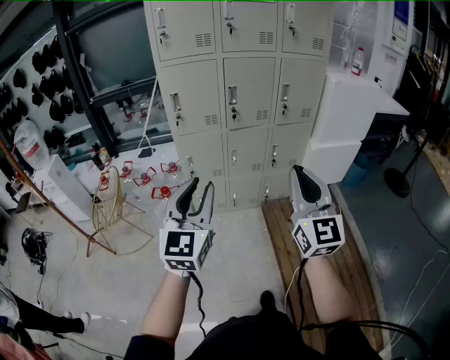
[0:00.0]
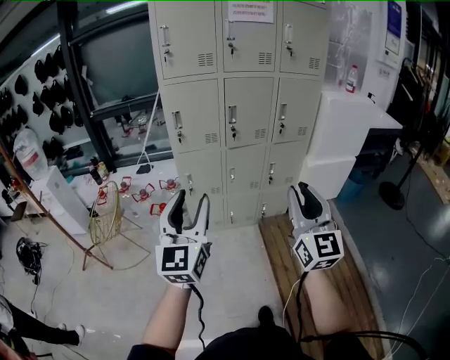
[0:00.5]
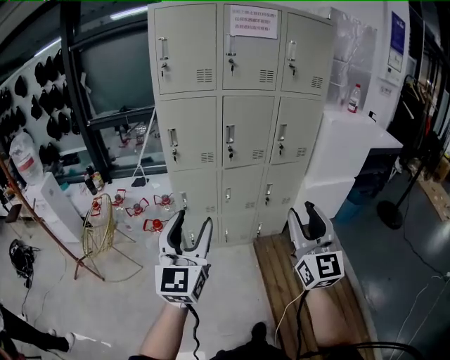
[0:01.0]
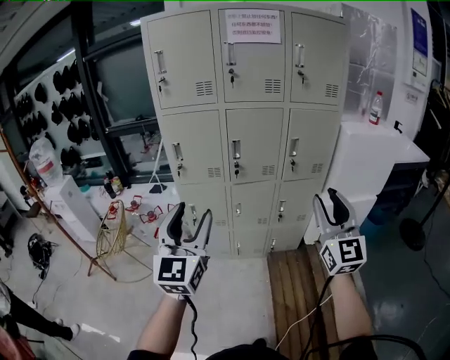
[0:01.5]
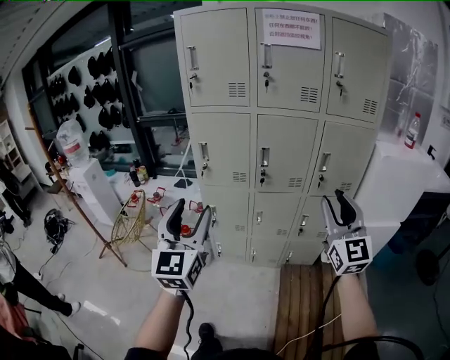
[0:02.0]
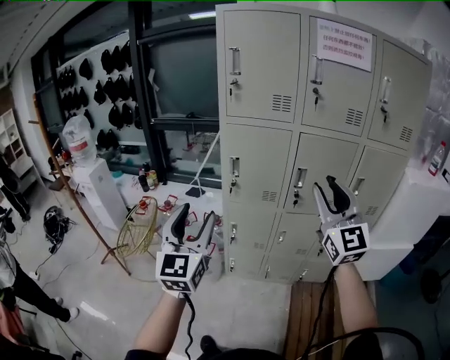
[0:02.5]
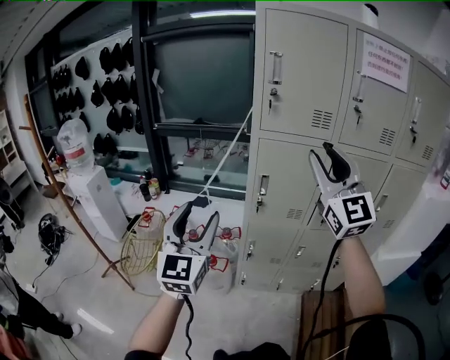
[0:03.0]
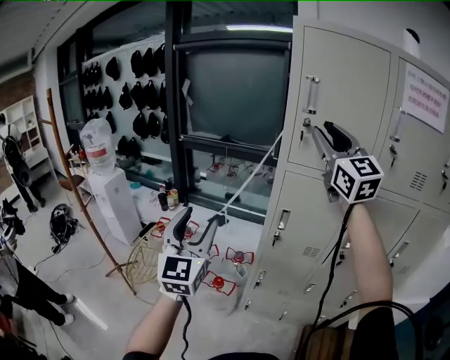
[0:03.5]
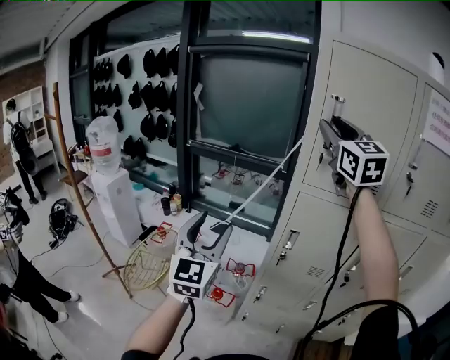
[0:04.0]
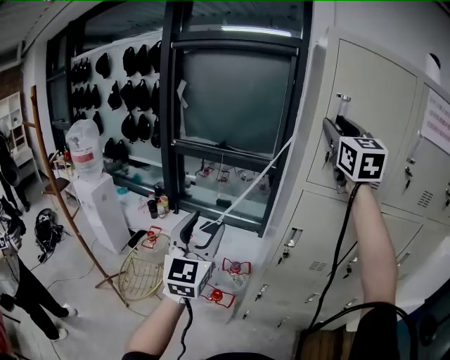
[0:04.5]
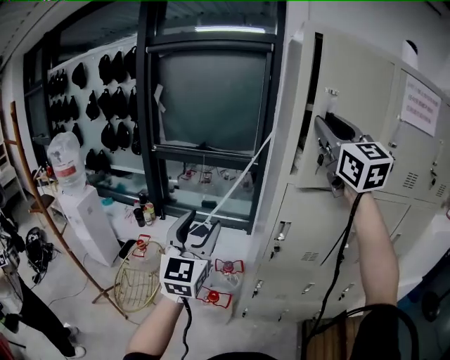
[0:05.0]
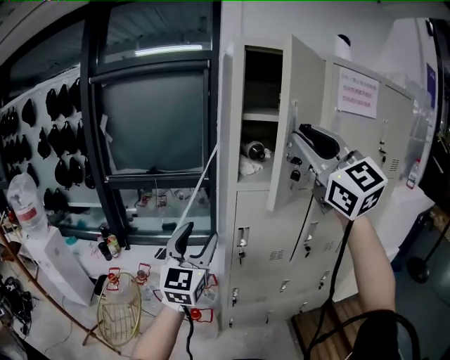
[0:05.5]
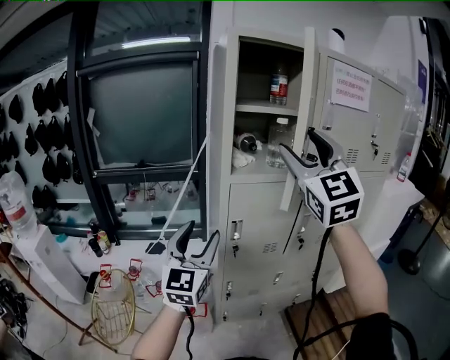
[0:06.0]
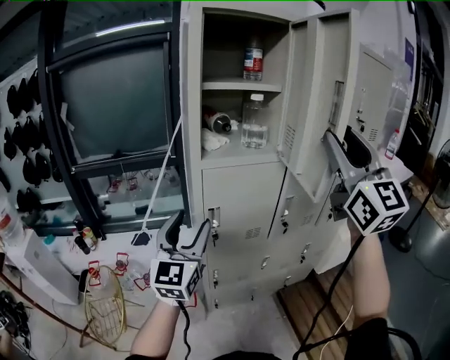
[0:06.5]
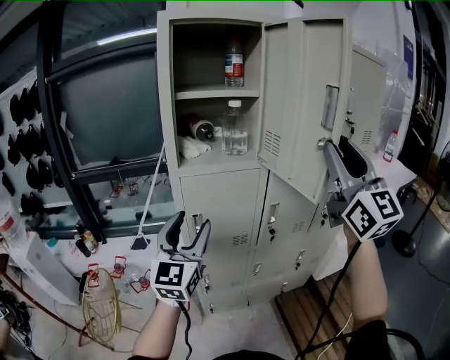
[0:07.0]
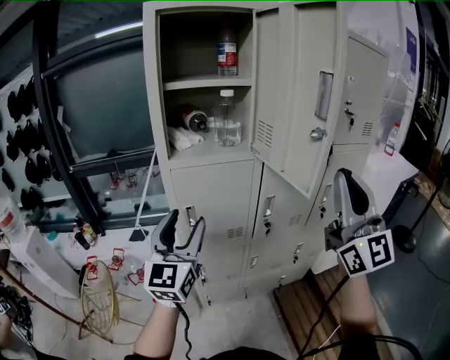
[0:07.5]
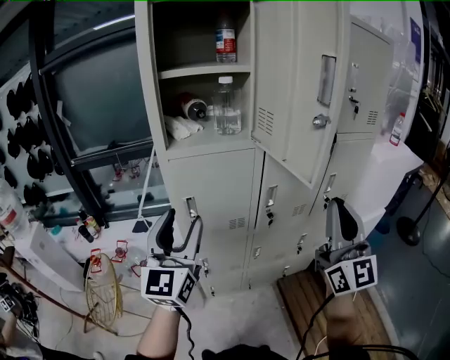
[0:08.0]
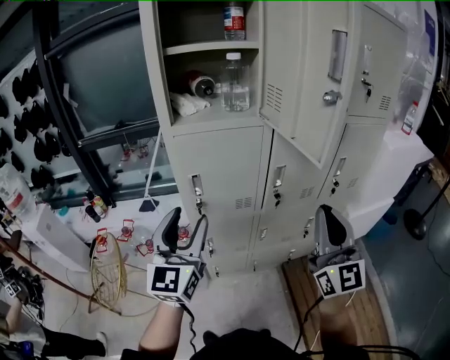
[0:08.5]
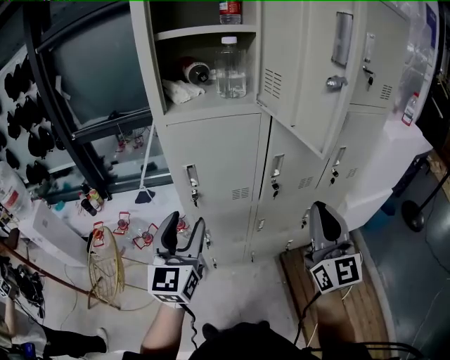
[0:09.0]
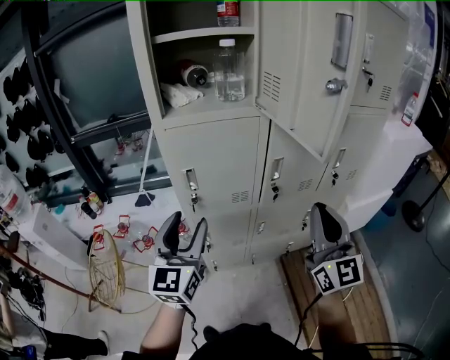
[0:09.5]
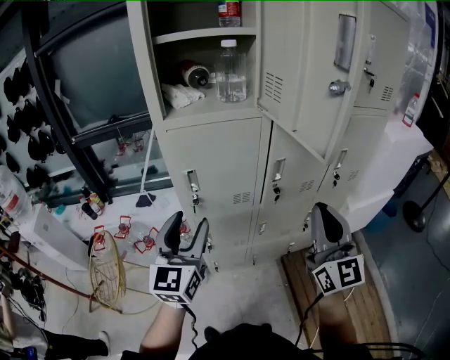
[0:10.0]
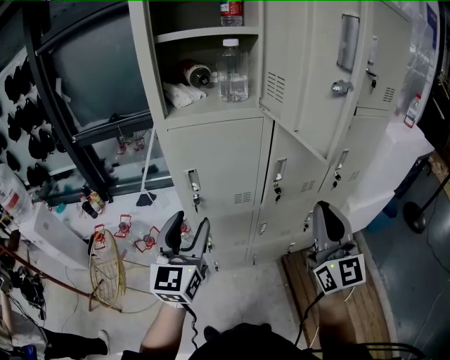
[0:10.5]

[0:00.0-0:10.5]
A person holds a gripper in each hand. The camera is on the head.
0:00.0 to 0:02.0: The left gripper goes roughly 15 cm forward and upward, rotates approximately 20 degrees, and opens, while the right gripper goes roughly 30 cm forward and to the right, and opens its fingers.
0:02.0 to 0:04.0: The two grippers travel together, forward and to the left, some 60 cm. The right gripper is displaced upward by about 25 cm.
0:04.0 to 0:06.5: The left gripper ends up approximately 15 cm from where it was, and swivels some 30 degrees. Meanwhile the right gripper shifts by some 30 cm, changes its angle by roughly 30 degrees, and opens and closes again.
0:06.5 to 0:08.5: The left gripper shifts approximately 10 cm to the right. The right gripper shifts roughly 25 cm downward and to the right, and closes up.
0:08.5 to 0:10.5: The left gripper changes place by some 5 cm.

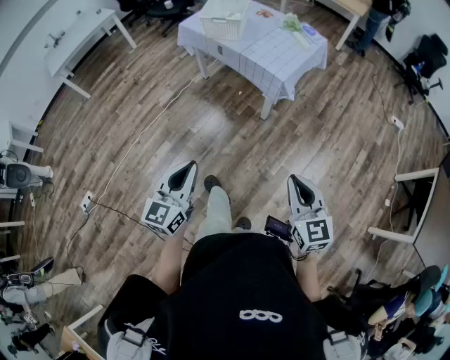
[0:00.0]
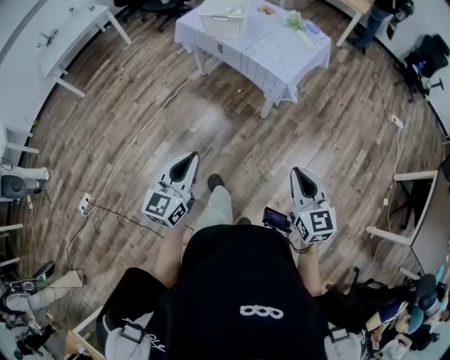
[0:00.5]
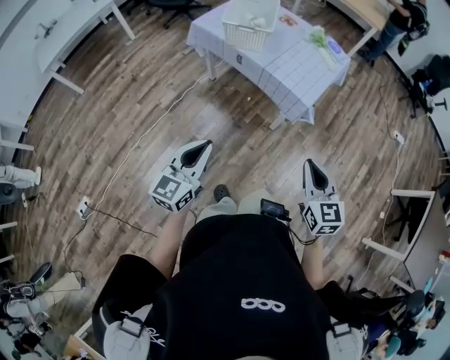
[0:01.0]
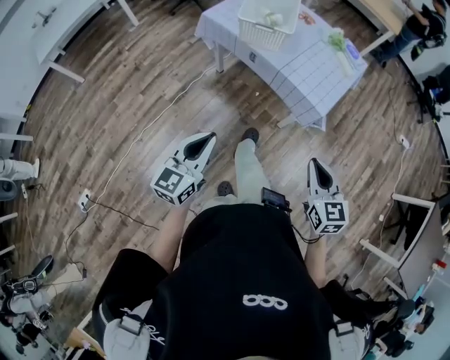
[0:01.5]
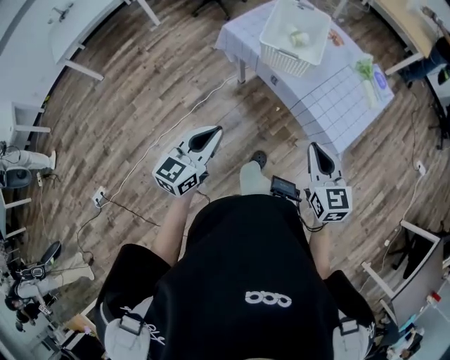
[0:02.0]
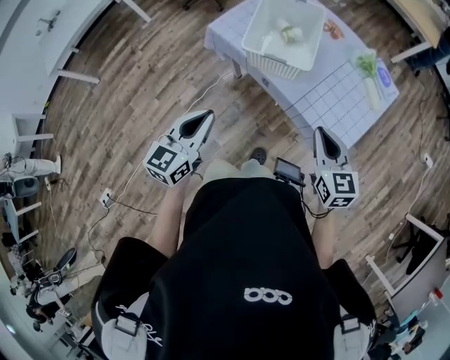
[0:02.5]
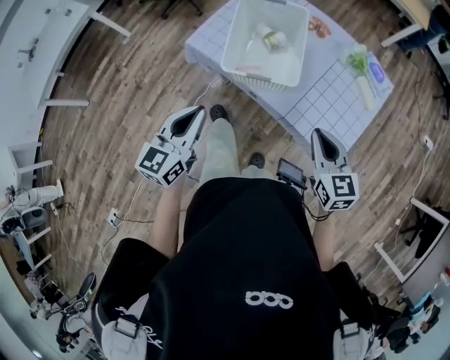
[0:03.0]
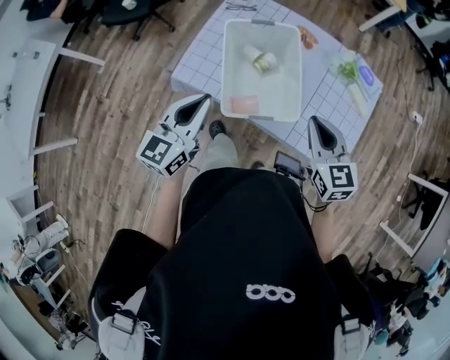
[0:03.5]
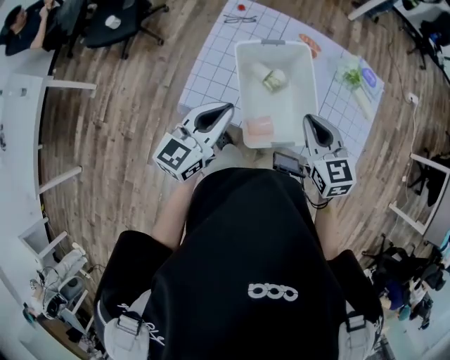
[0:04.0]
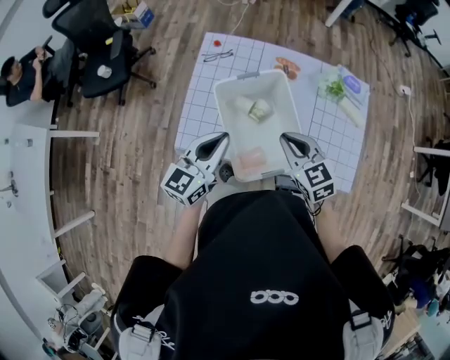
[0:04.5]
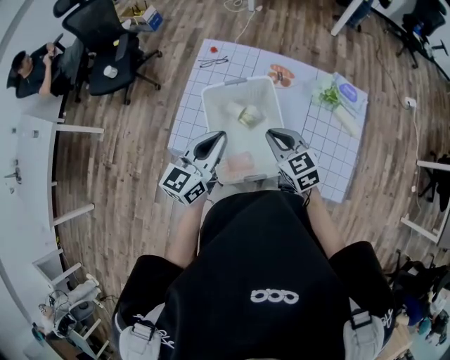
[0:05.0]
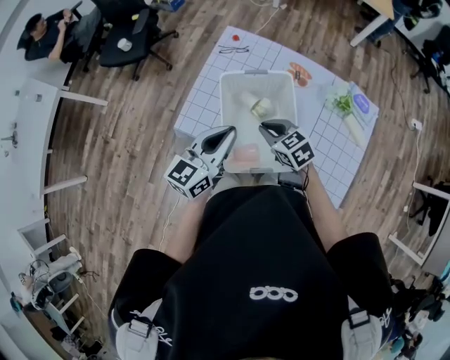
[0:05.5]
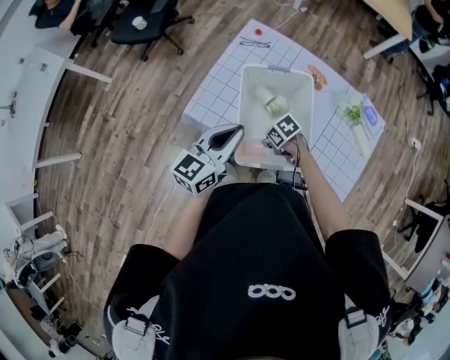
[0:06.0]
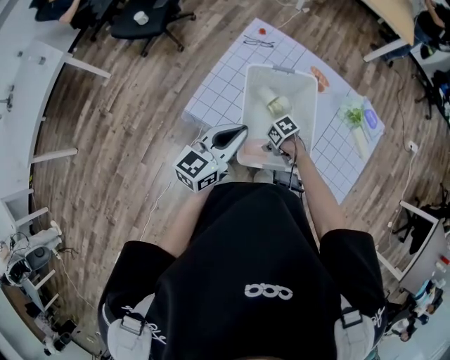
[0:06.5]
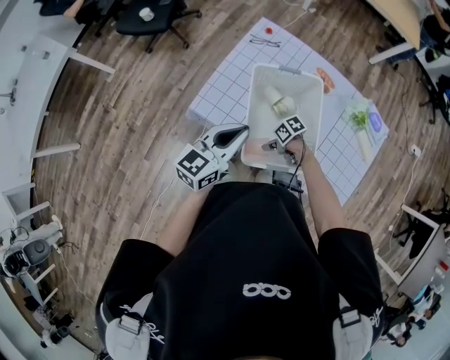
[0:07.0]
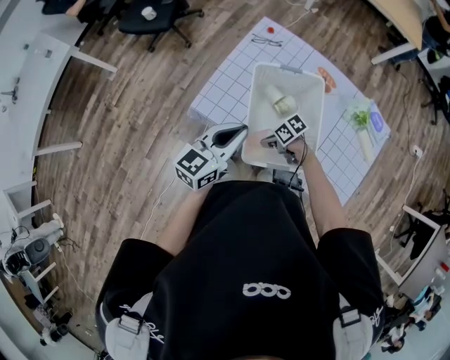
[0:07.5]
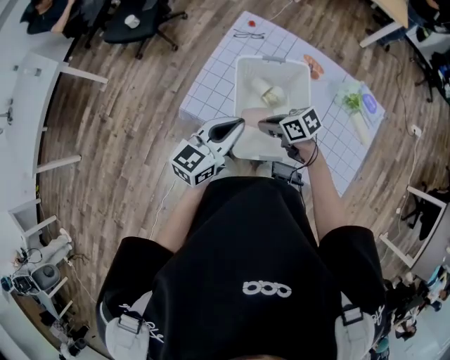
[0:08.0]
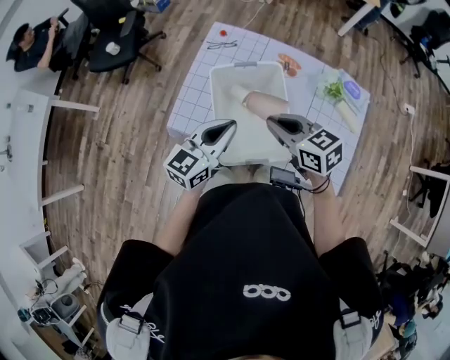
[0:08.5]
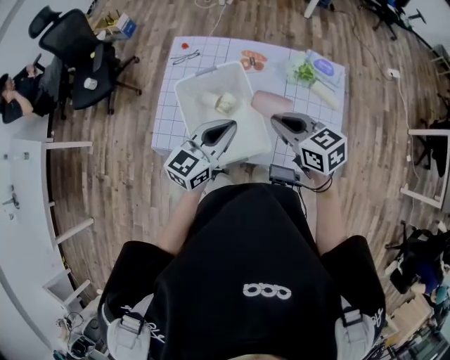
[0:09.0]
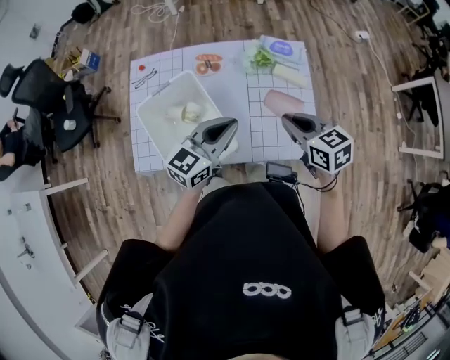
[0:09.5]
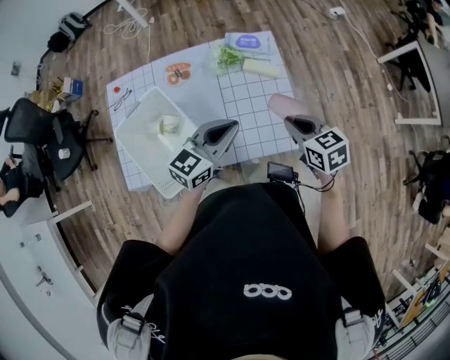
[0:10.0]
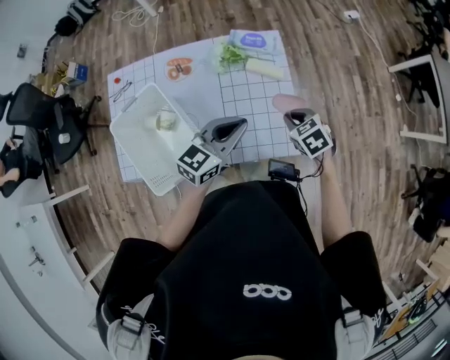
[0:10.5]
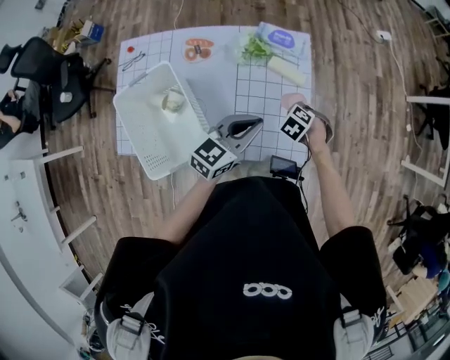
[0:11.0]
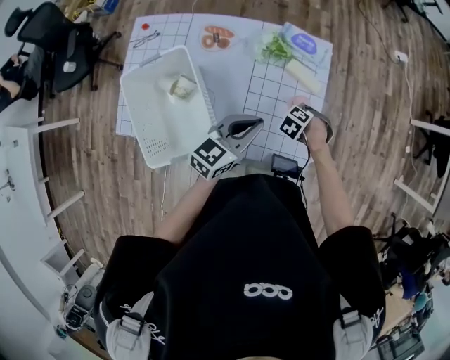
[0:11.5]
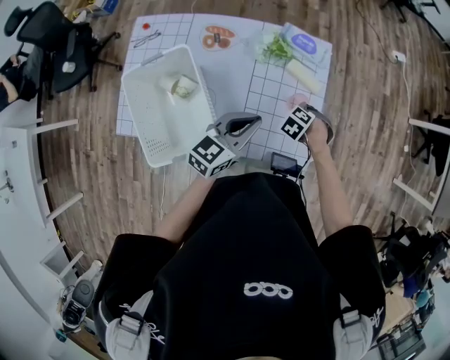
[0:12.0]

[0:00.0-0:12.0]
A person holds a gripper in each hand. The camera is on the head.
0:00.0 to 0:02.0: Both grippers are carried forward and to the left, some 50 cm.
0:02.0 to 0:04.0: Both grippers are carried roughly 50 cm. The right gripper changes its angle by some 20 degrees; the left gripper changes its angle by roughly 30 degrees.
0:04.0 to 0:06.0: The right gripper is displaced downward by approximately 25 cm, and rotates about 70 degrees.
0:06.0 to 0:08.0: The right gripper is displaced upward by approximately 10 cm, and changes its angle by roughly 30 degrees.
0:08.0 to 0:10.0: The right gripper shifts by approximately 40 cm, and swivels approximately 60 degrees, while the left gripper shifts by roughly 35 cm, and rotates about 40 degrees.
0:10.0 to 0:12.0: The right gripper is displaced downward by roughly 25 cm, and tilts its fingers some 50 degrees downward. The left gripper travels downward by roughly 5 cm.

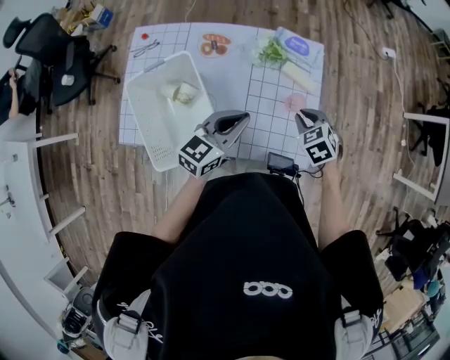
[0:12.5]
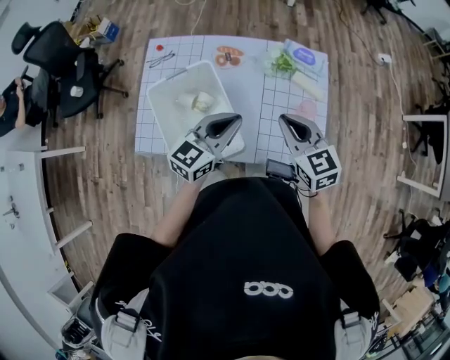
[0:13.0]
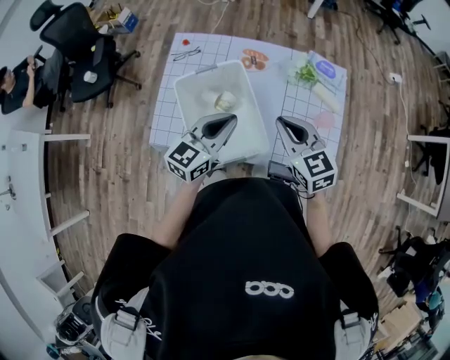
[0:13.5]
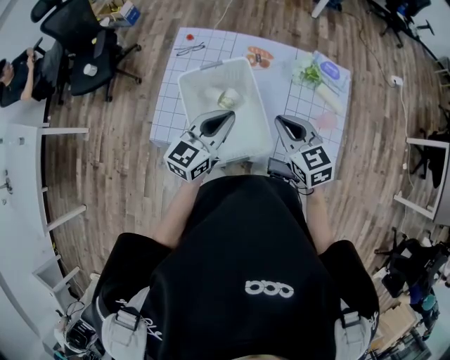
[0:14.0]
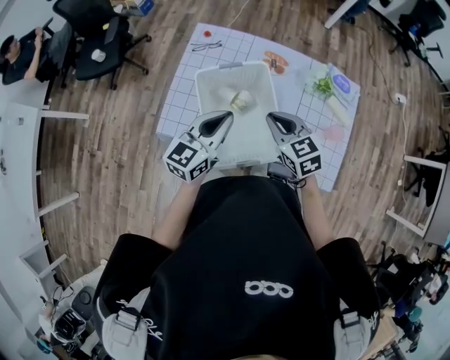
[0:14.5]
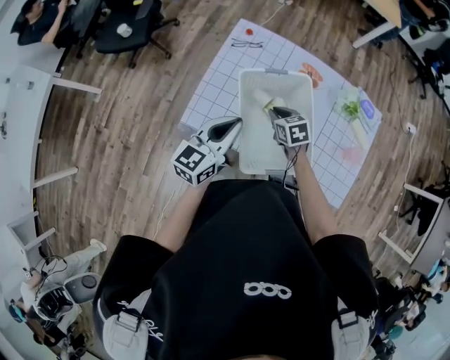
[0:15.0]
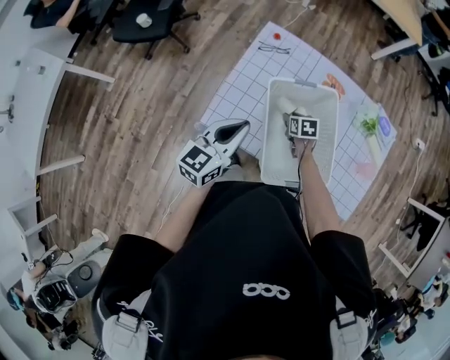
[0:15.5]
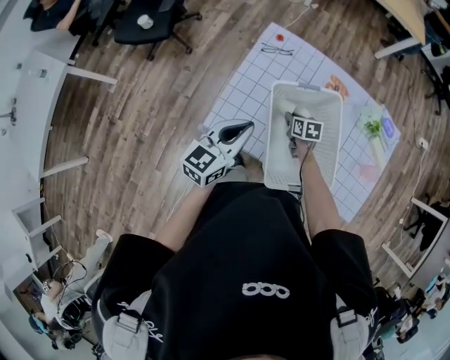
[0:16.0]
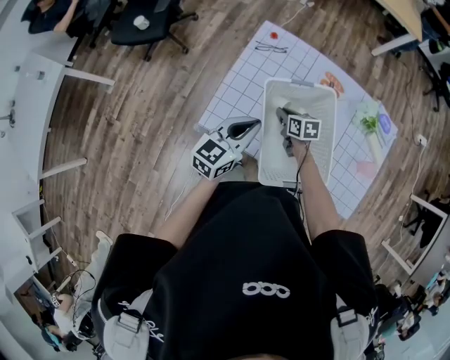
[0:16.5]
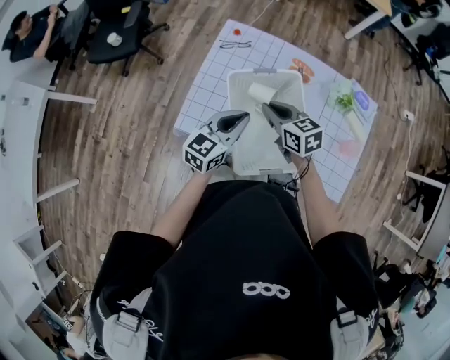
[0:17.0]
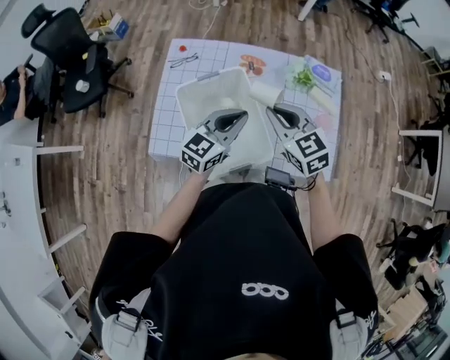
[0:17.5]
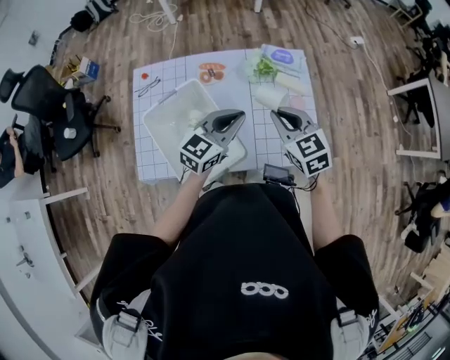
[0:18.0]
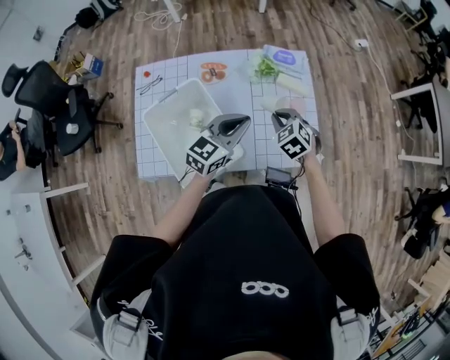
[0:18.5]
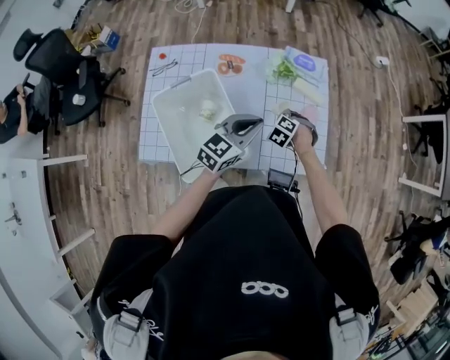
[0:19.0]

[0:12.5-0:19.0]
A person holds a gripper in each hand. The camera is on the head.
0:12.5 to 0:14.5: Both grippers move to the left, some 30 cm. The right gripper rotates about 30 degrees.
0:14.5 to 0:17.0: The left gripper reaches about 15 cm to the left, then returns. The right gripper shifts some 10 cm to the left and forward, goes downward and returns, about 25 cm each way, and opens, then closes again.
0:17.0 to 0:19.0: The right gripper moves some 40 cm, and tips its fingers downward by about 40 degrees, while the left gripper moves approximately 30 cm, and swivels some 30 degrees.
